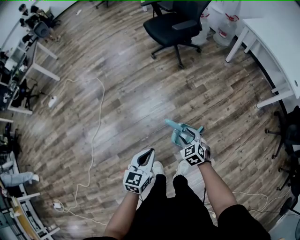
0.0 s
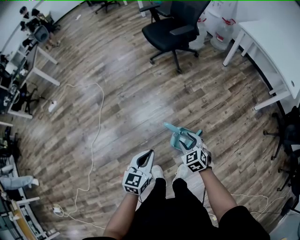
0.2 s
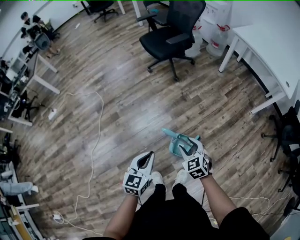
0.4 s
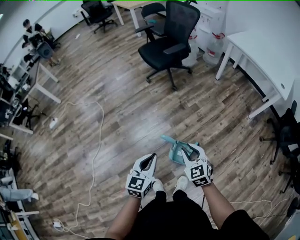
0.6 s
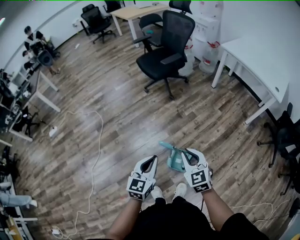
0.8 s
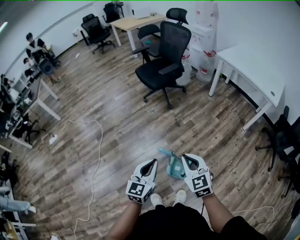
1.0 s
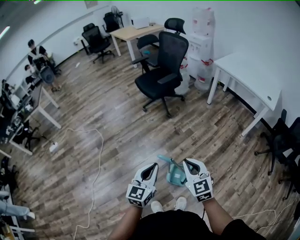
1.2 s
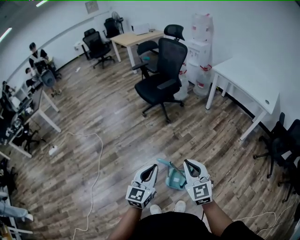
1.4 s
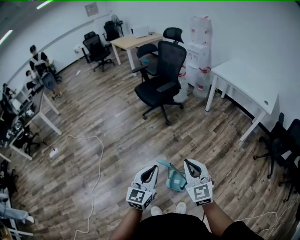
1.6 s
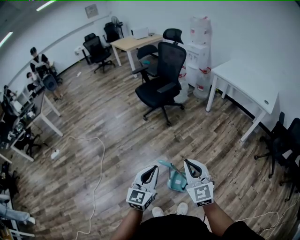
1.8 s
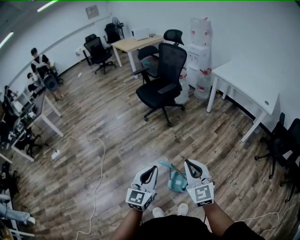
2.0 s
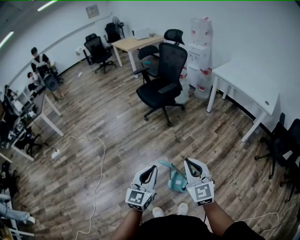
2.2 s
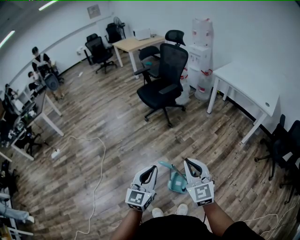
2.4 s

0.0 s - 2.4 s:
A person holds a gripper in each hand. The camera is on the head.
0.0 s - 1.2 s: The left gripper goes some 15 cm upward, and rotates roughly 20 degrees; the right gripper is displaced upward by about 25 cm, changes its angle by roughly 30 degrees, and closes up.
1.2 s - 2.4 s: The right gripper shifts approximately 10 cm upward.

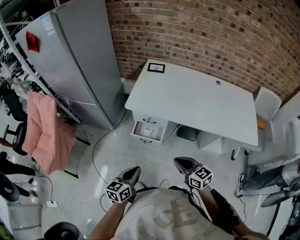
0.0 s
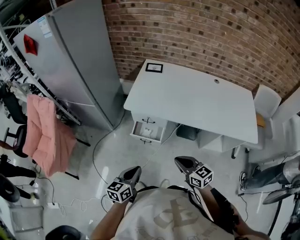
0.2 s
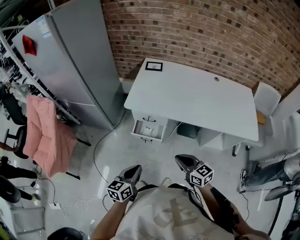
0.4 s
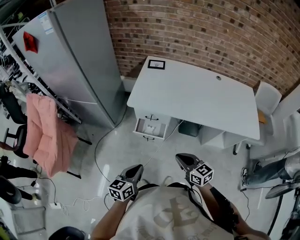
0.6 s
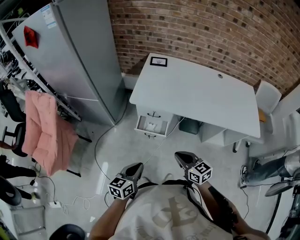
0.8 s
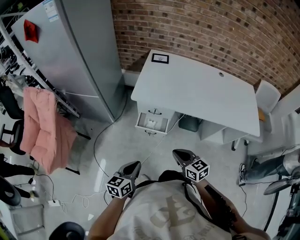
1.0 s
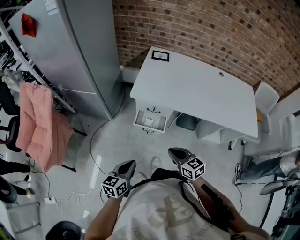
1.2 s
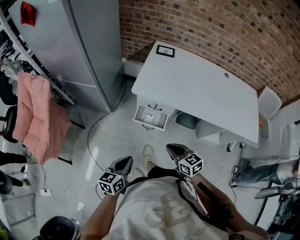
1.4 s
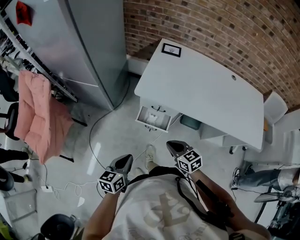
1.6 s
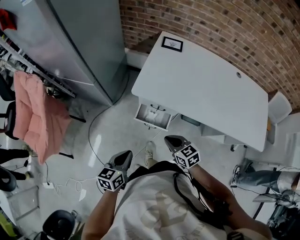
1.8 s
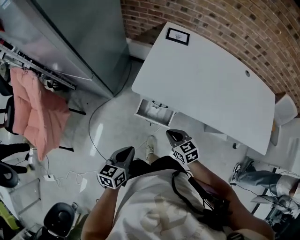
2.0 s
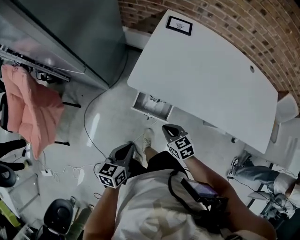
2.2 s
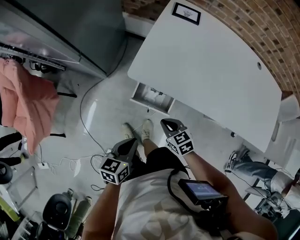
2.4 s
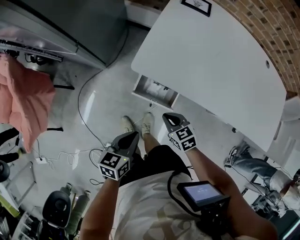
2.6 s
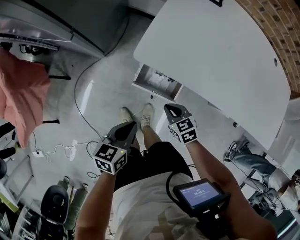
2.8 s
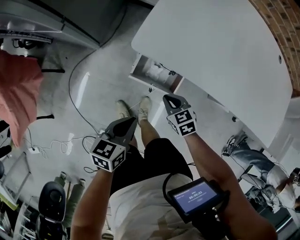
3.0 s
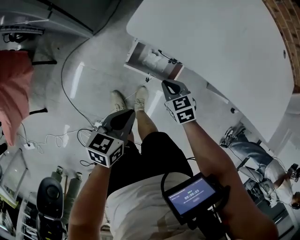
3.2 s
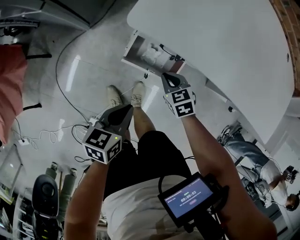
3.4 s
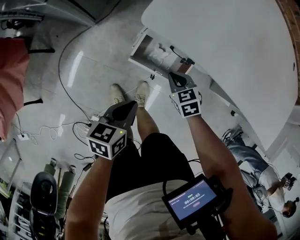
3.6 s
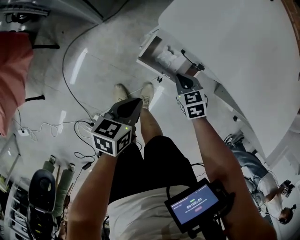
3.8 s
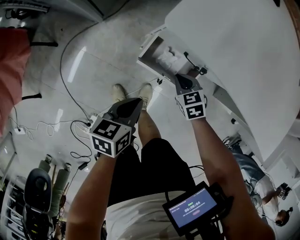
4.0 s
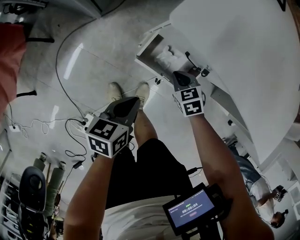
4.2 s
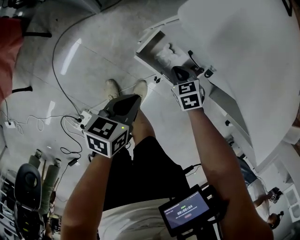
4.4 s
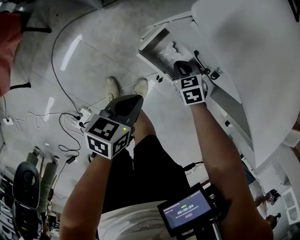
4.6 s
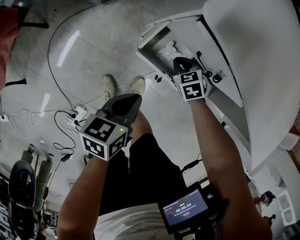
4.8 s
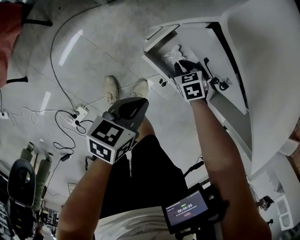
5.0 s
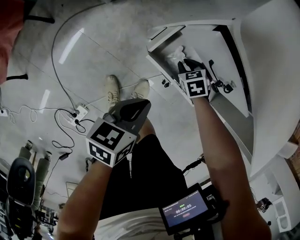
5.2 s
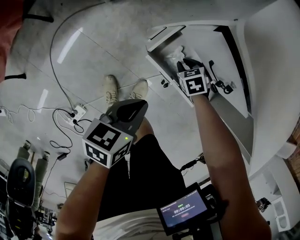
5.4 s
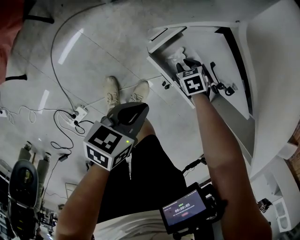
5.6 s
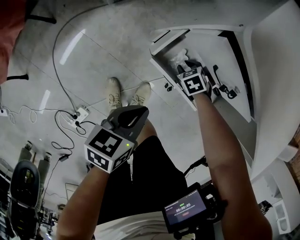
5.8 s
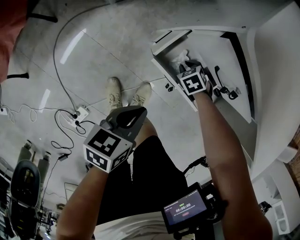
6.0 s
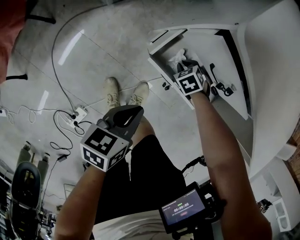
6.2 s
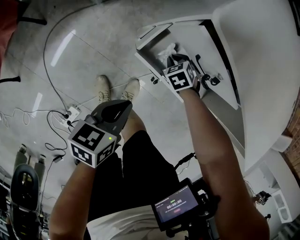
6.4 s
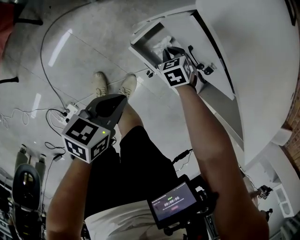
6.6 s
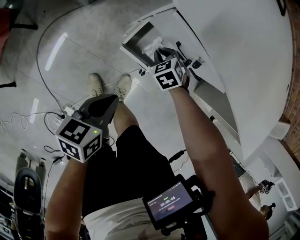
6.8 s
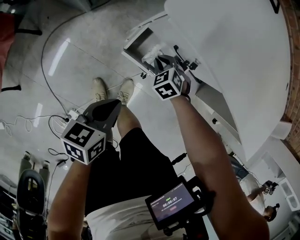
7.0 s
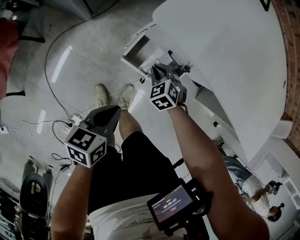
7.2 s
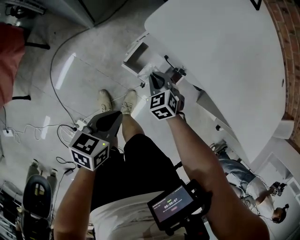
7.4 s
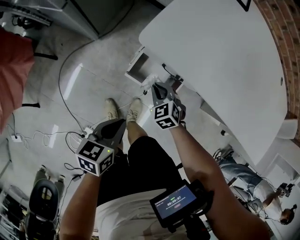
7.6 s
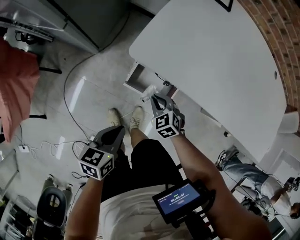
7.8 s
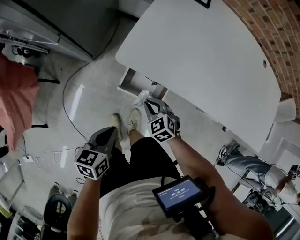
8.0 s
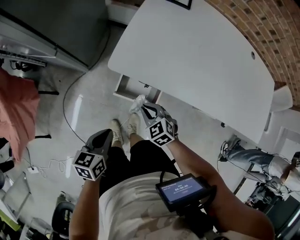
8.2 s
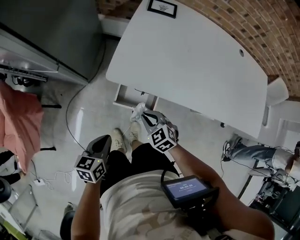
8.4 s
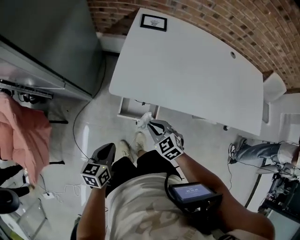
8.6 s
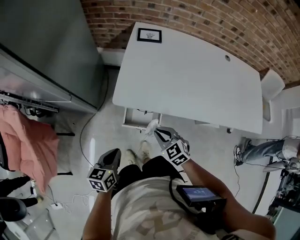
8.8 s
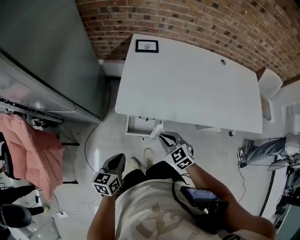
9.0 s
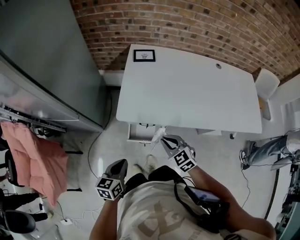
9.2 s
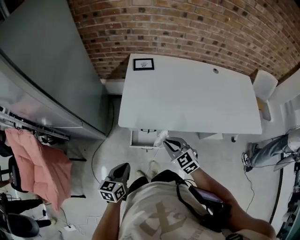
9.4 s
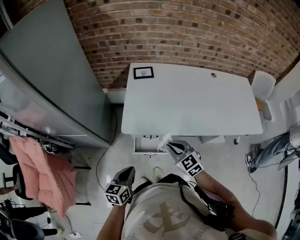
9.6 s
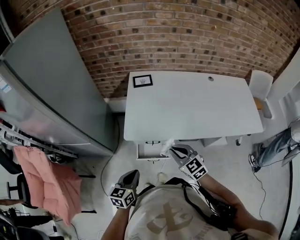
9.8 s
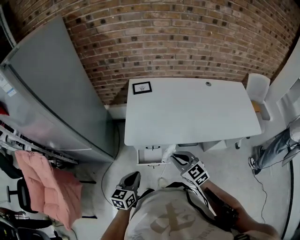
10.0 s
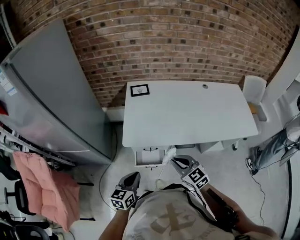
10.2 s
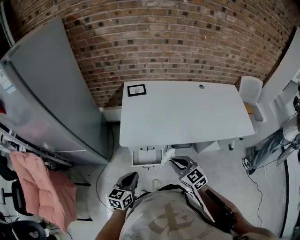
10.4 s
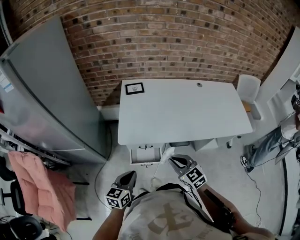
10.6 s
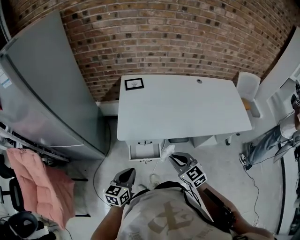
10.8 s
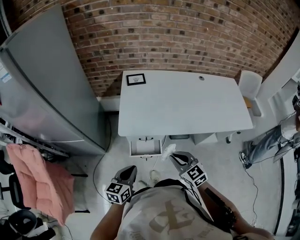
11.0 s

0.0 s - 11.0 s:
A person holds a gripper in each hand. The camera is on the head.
0.0 s - 1.6 s: The left gripper travels to the left and forward by about 10 cm. The right gripper heads to the left, forward and downward, covering roughly 15 cm.
1.6 s - 3.2 s: Both grippers travel together downward and forward, approximately 25 cm. The right gripper changes its angle by some 20 degrees.
3.2 s - 4.8 s: The left gripper moves downward, about 15 cm, while the right gripper is displaced downward and forward by approximately 20 cm.
4.8 s - 6.2 s: The right gripper is displaced downward by roughly 5 cm.
6.2 s - 7.8 s: The right gripper is displaced upward by roughly 25 cm, and swivels approximately 30 degrees. The left gripper is displaced upward by approximately 15 cm.
7.8 s - 9.4 s: The left gripper heads upward, covering some 20 cm, and turns by approximately 20 degrees; the right gripper is displaced upward by approximately 30 cm, and rotates about 30 degrees.
9.4 s - 11.0 s: The right gripper travels backward and upward by approximately 10 cm. The left gripper changes place by roughly 5 cm.

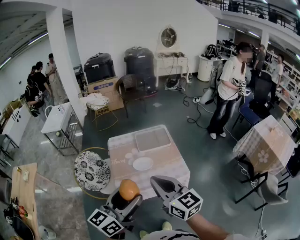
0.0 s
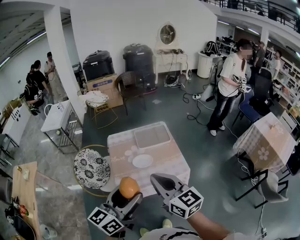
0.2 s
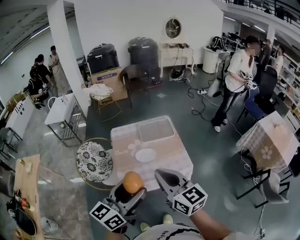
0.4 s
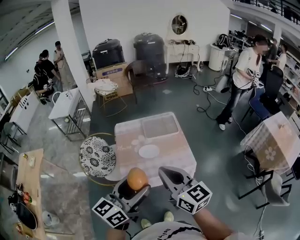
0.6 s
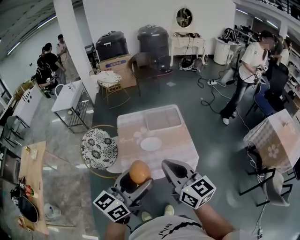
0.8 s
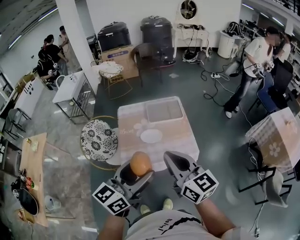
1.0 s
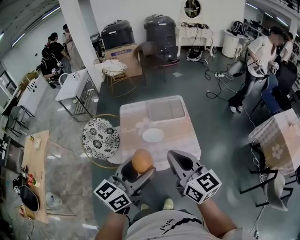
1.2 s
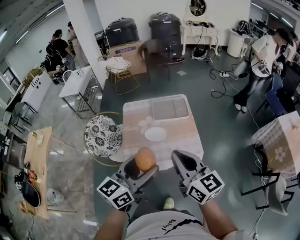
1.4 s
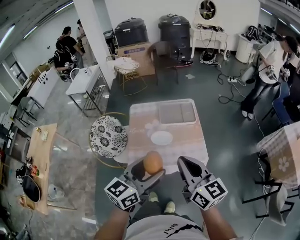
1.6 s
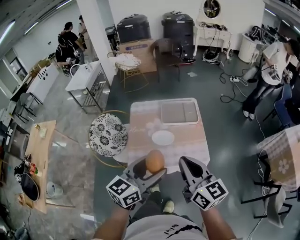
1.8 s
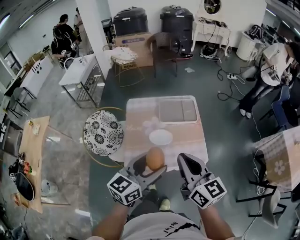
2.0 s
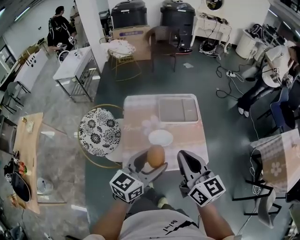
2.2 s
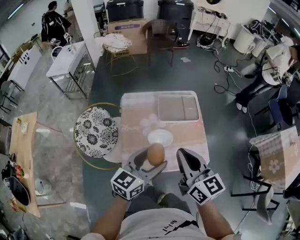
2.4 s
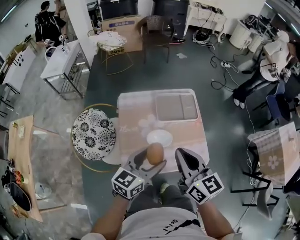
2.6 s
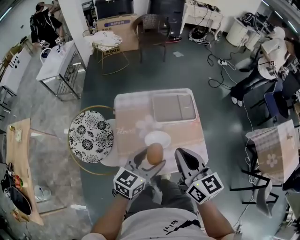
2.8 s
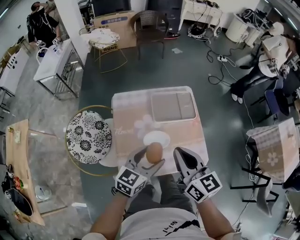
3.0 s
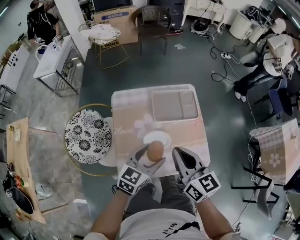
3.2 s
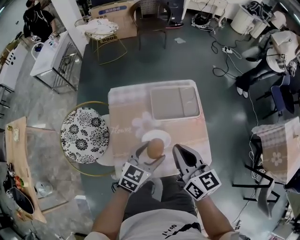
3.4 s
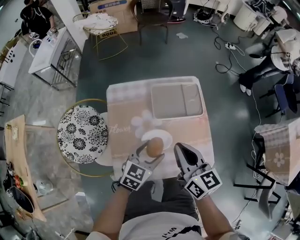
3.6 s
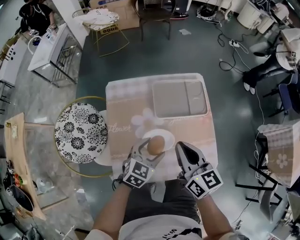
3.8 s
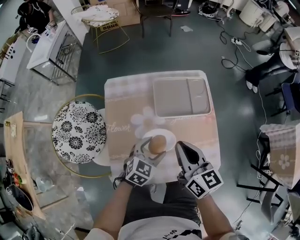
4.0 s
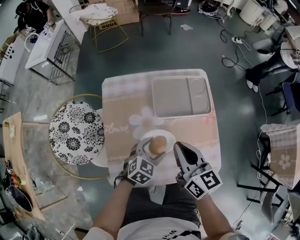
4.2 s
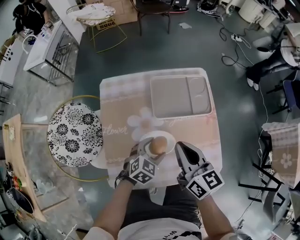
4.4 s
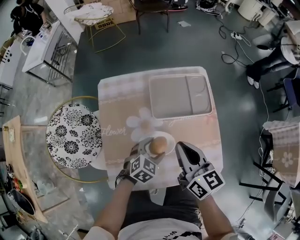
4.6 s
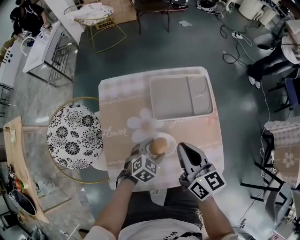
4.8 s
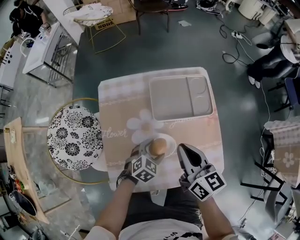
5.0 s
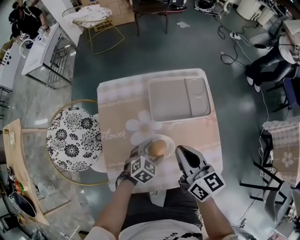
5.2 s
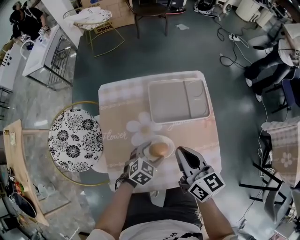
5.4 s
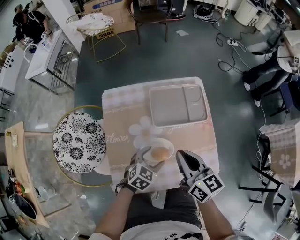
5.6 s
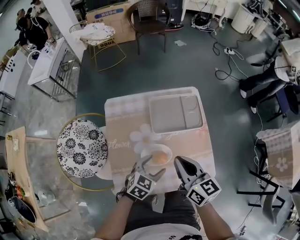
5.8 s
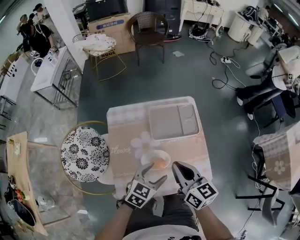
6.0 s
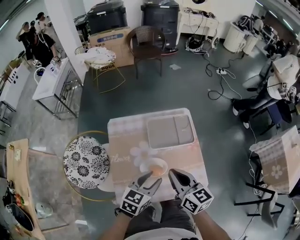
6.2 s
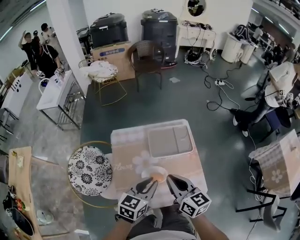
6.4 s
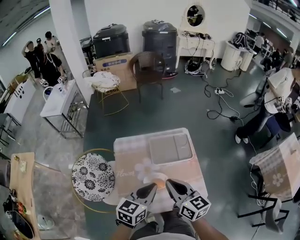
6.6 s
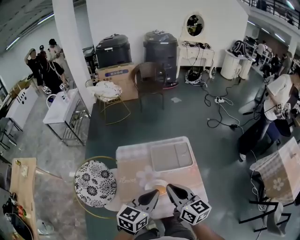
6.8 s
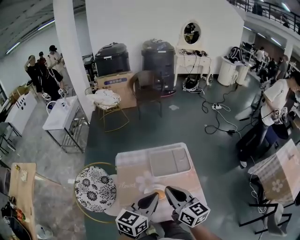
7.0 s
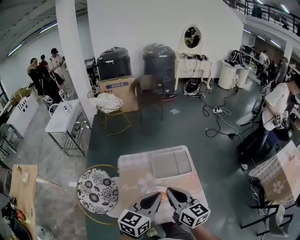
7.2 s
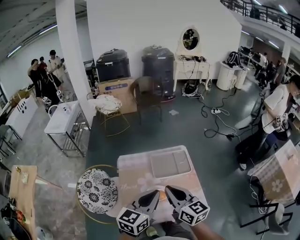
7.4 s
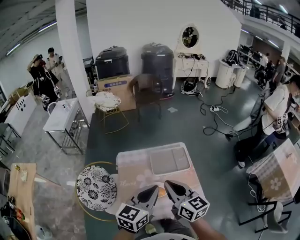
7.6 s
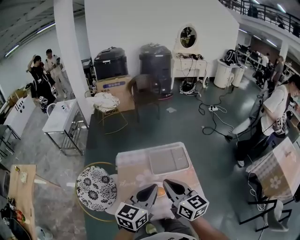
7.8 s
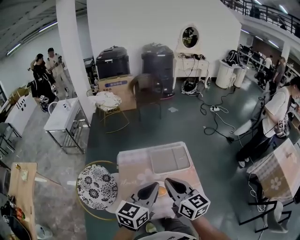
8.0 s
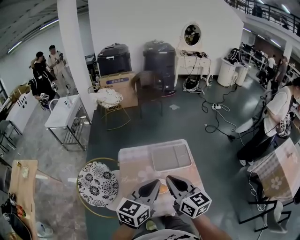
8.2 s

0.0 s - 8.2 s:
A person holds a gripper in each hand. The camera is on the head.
0.0 s - 1.6 s: The left gripper is displaced to the right, forward and downward by roughly 10 cm. The right gripper heads to the right, covering roughly 10 cm.
1.6 s - 3.2 s: The right gripper heads forward, downward and to the left, covering approximately 25 cm; the left gripper travels forward and downward by about 30 cm.
3.2 s - 5.0 s: The left gripper travels downward by roughly 25 cm, and points its fingers some 30 degrees further downward. Meanwhile the right gripper moves downward and forward, approximately 20 cm.
5.0 s - 6.6 s: The right gripper heads upward, covering some 20 cm, while the left gripper travels upward by about 35 cm, points its fingers some 30 degrees further upward, and closes its fingers.
6.6 s - 8.2 s: The two grippers go approximately 10 cm upward.

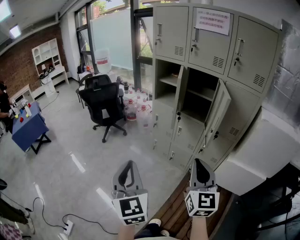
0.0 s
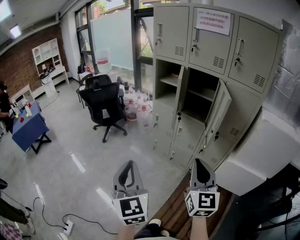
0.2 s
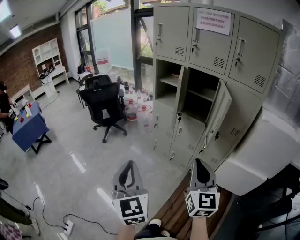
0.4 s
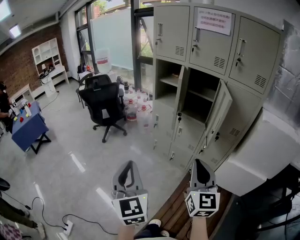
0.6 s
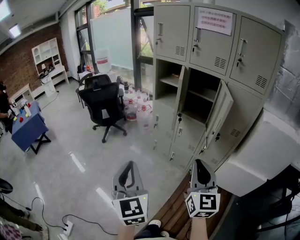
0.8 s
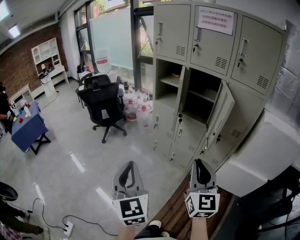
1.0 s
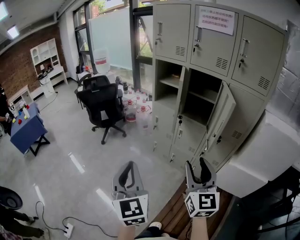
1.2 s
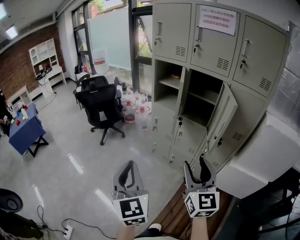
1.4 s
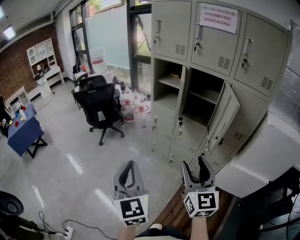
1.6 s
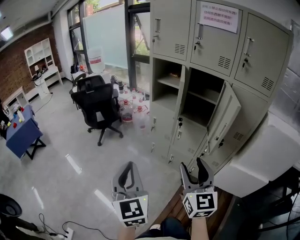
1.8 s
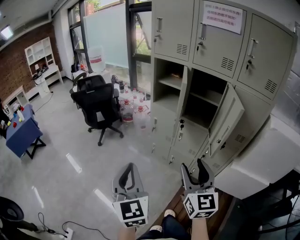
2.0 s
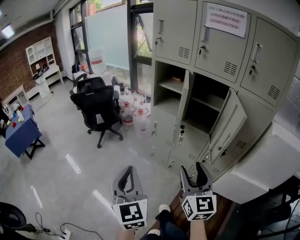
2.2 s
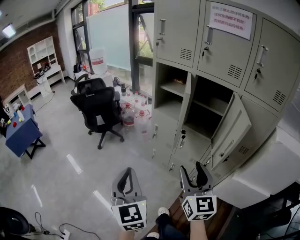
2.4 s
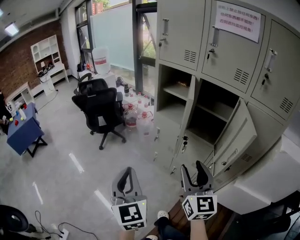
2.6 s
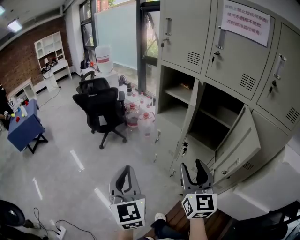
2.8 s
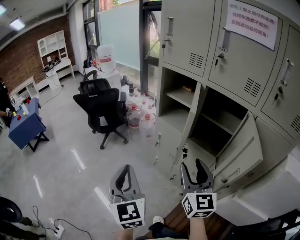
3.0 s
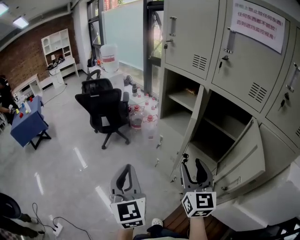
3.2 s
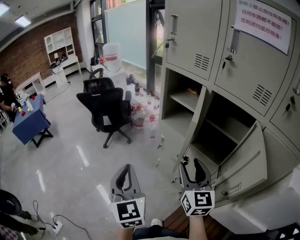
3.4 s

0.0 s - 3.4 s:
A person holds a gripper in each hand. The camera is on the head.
0.0 s - 1.6 s: Both grippers move forward, roughly 10 cm. The right gripper opens.
1.6 s - 3.4 s: Both grippers travel together forward, about 25 cm.
